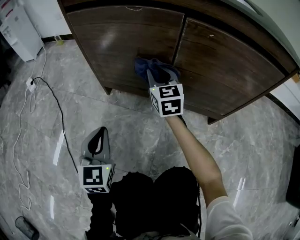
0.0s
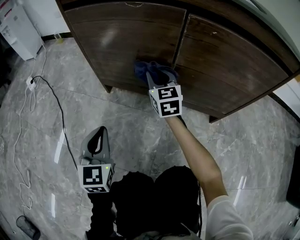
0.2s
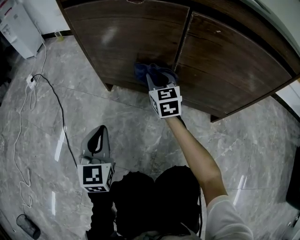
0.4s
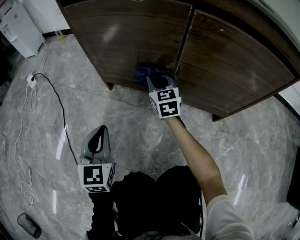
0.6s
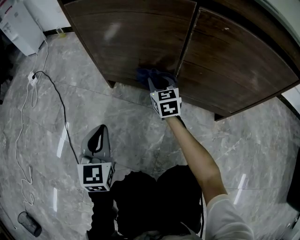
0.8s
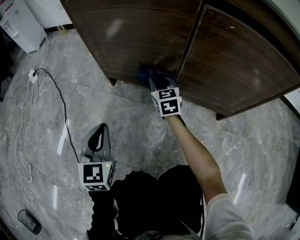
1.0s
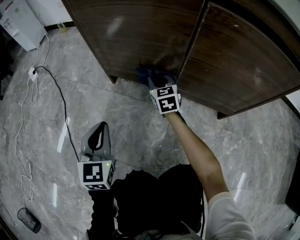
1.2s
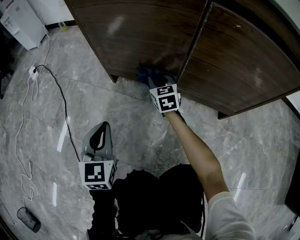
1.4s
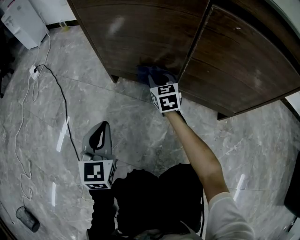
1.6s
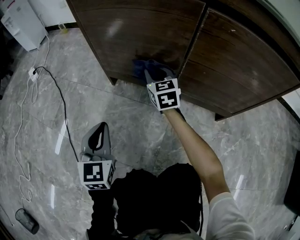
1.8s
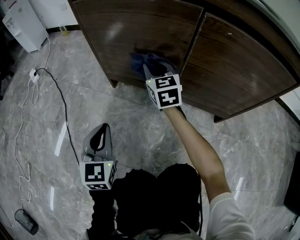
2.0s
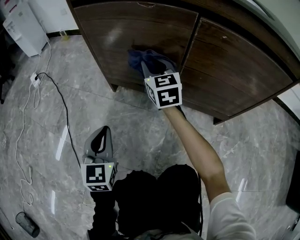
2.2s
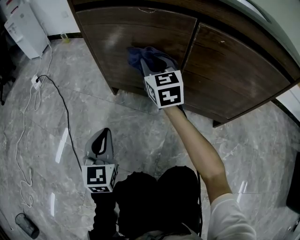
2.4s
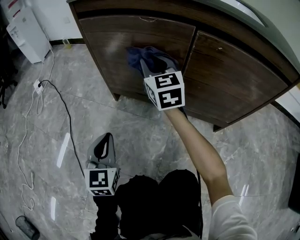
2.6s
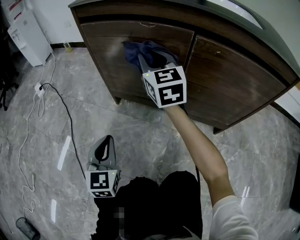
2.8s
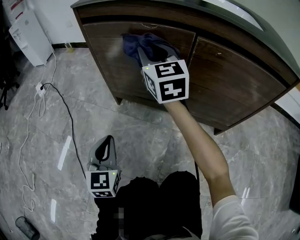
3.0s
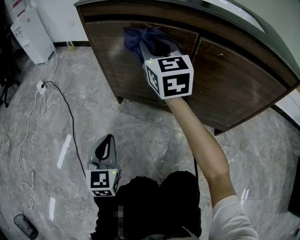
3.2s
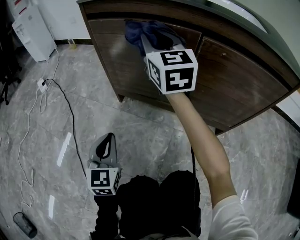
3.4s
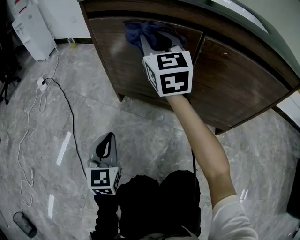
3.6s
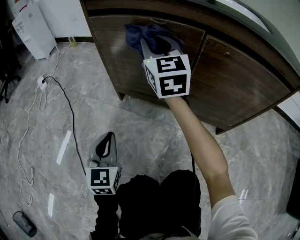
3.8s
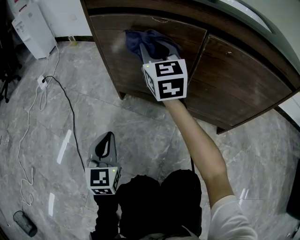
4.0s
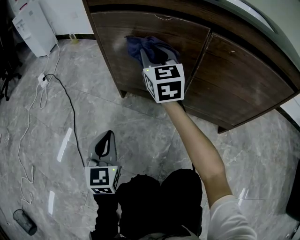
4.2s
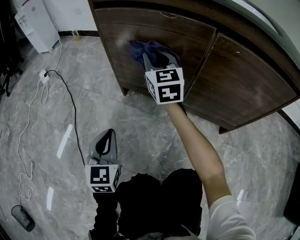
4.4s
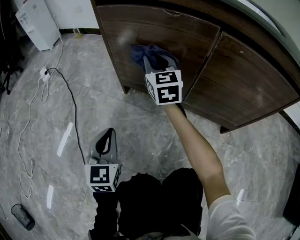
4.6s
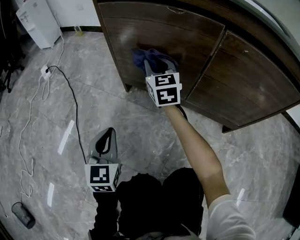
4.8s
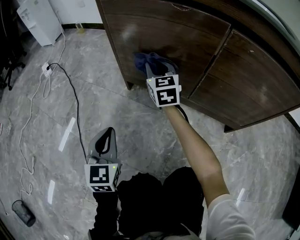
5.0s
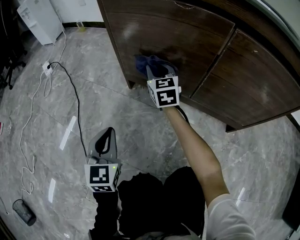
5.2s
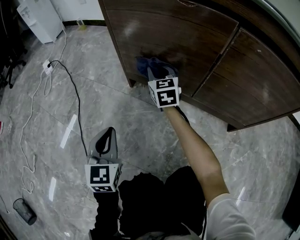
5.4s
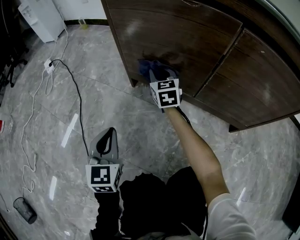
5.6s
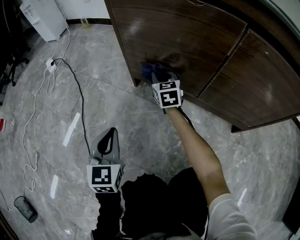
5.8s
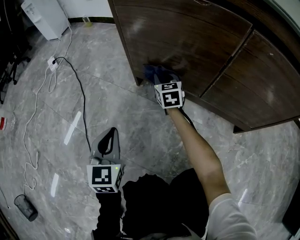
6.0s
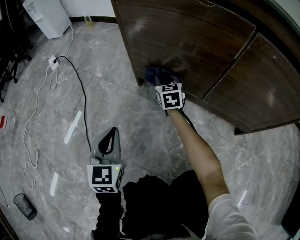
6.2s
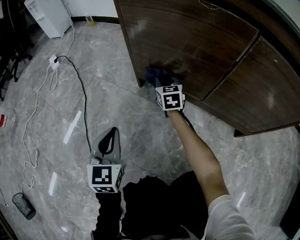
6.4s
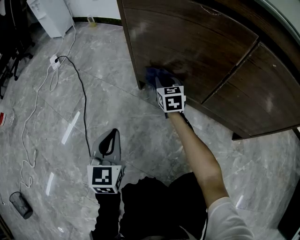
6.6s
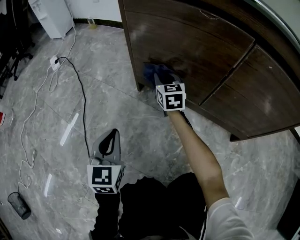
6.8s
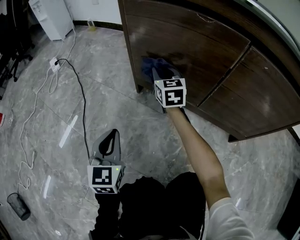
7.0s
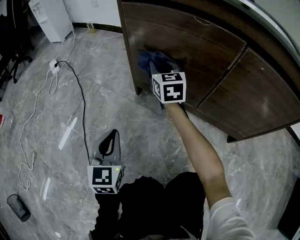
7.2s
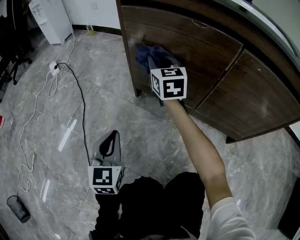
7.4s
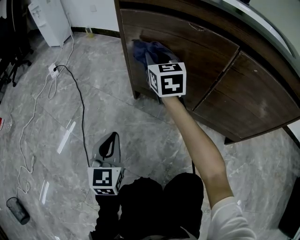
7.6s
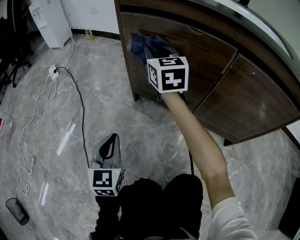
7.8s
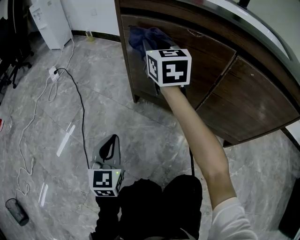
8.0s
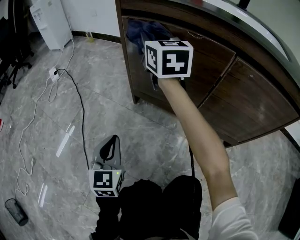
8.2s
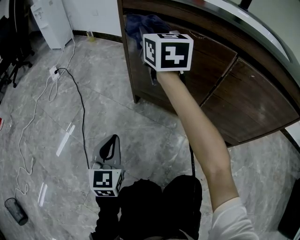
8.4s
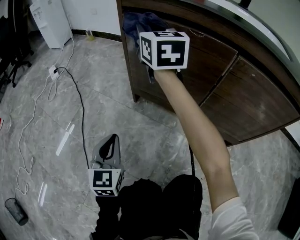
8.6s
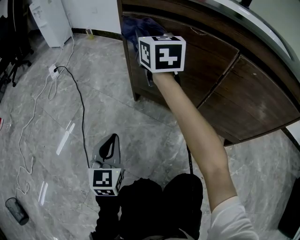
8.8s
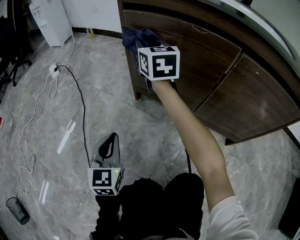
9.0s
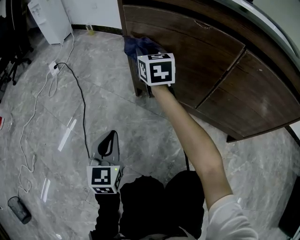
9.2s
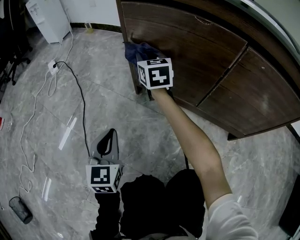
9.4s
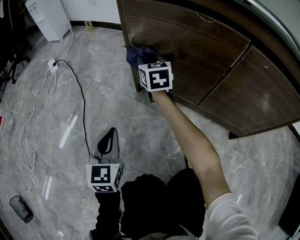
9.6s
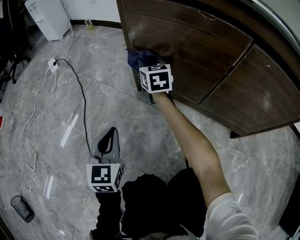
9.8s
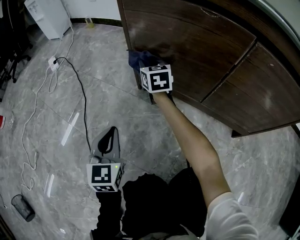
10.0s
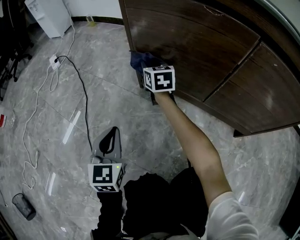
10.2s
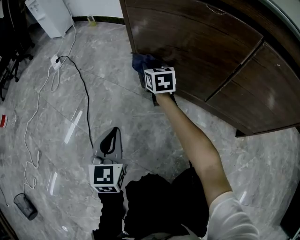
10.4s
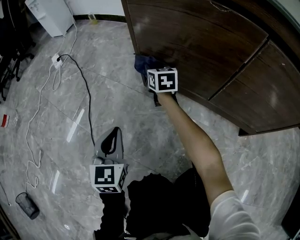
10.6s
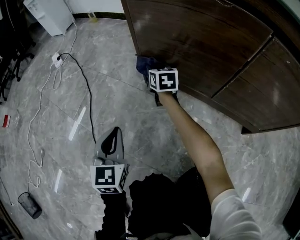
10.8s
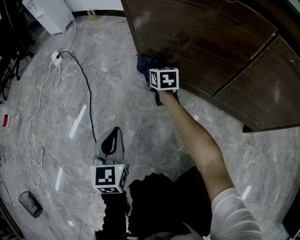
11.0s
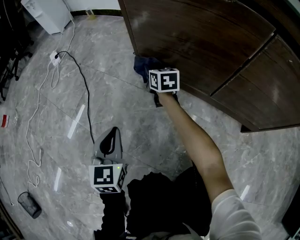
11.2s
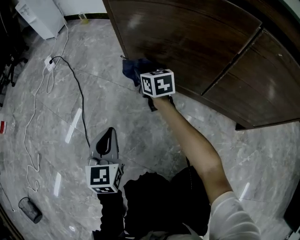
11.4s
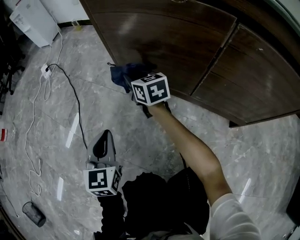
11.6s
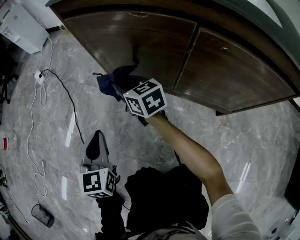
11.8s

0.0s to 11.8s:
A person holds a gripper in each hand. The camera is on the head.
0.0s to 1.4s: The right gripper moves downward, approximately 15 cm.
1.4s to 3.0s: The right gripper heads upward, covering approximately 30 cm, and rotates approximately 20 degrees.
3.0s to 4.4s: The right gripper shifts about 10 cm downward.
4.4s to 6.0s: The right gripper is displaced downward by about 20 cm, and changes its angle by some 20 degrees; the left gripper changes place by some 5 cm.
6.0s to 7.4s: The right gripper is displaced upward by roughly 20 cm.
7.4s to 8.8s: The right gripper shifts about 15 cm upward.
8.8s to 10.4s: The right gripper shifts roughly 25 cm downward, and swivels roughly 20 degrees.
10.4s to 11.8s: The right gripper travels backward and upward by about 15 cm. The left gripper moves upward and to the right, some 10 cm.

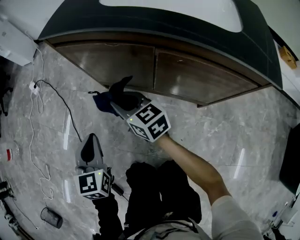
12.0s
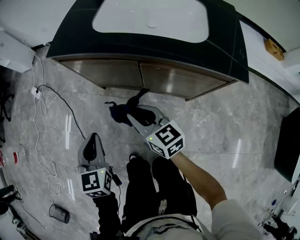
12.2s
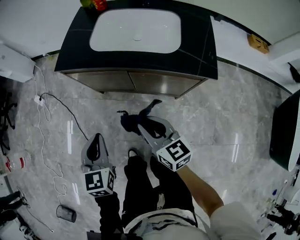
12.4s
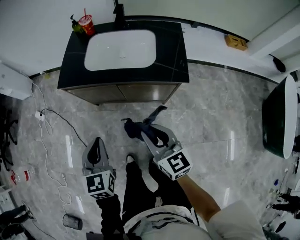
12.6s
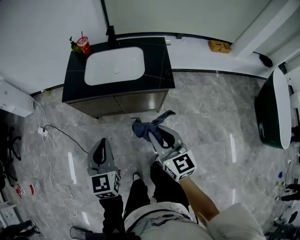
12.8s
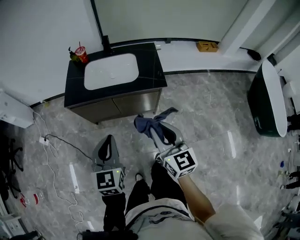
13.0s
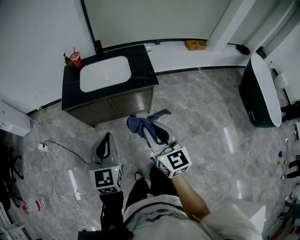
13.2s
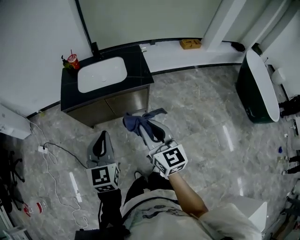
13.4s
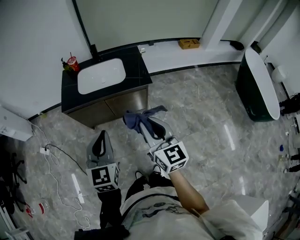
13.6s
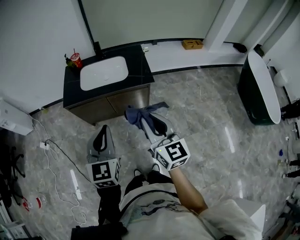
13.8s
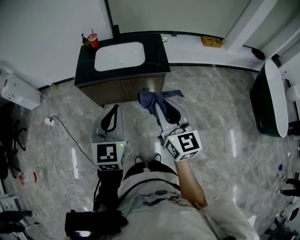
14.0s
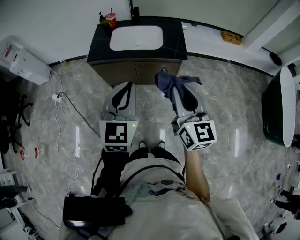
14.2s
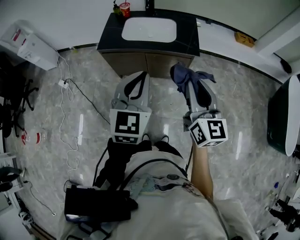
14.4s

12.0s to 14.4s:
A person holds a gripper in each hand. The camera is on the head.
12.0s to 13.2s: Both grippers travel together upward, about 50 cm. The left gripper changes its angle by about 40 degrees. The right gripper turns by approximately 50 degrees.
13.2s to 14.4s: Both grippers travel together upward, some 5 cm.

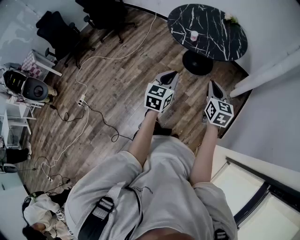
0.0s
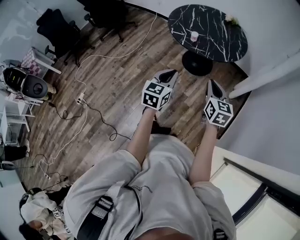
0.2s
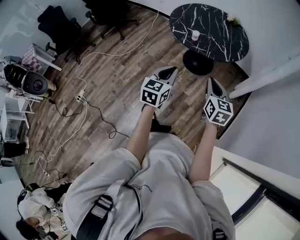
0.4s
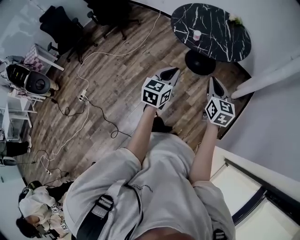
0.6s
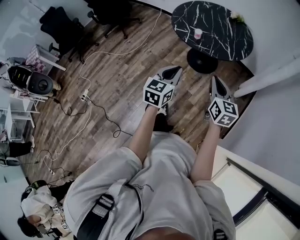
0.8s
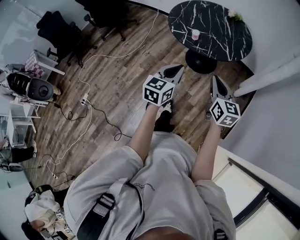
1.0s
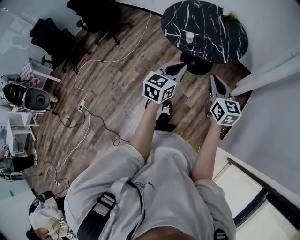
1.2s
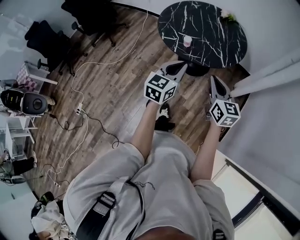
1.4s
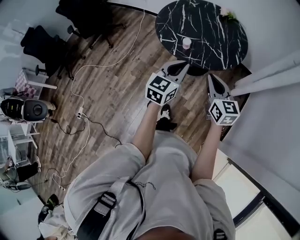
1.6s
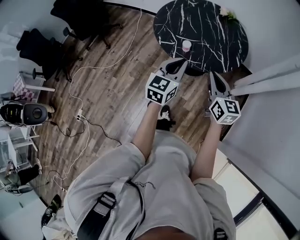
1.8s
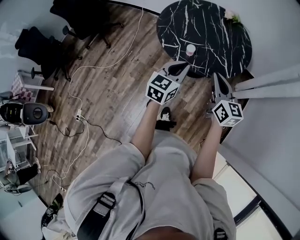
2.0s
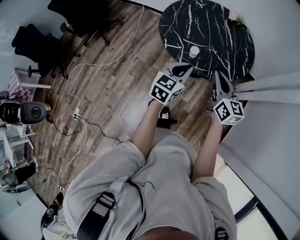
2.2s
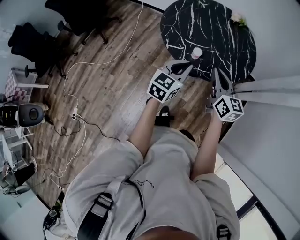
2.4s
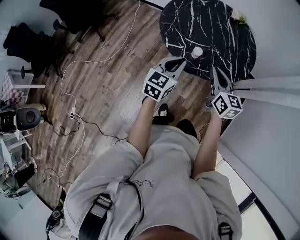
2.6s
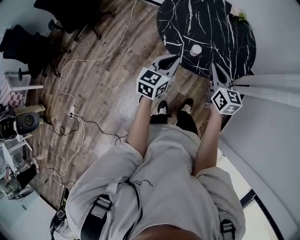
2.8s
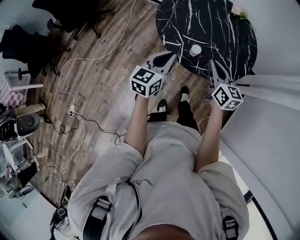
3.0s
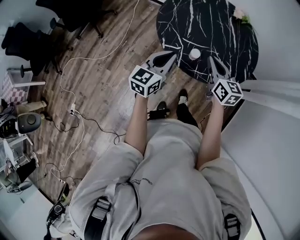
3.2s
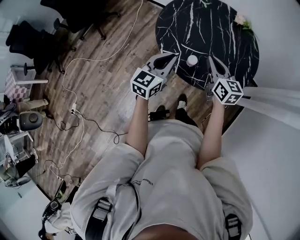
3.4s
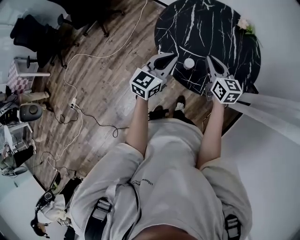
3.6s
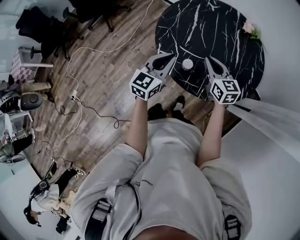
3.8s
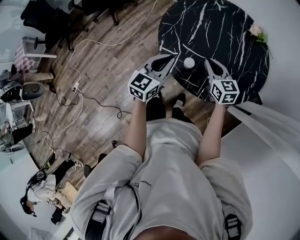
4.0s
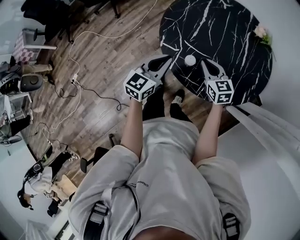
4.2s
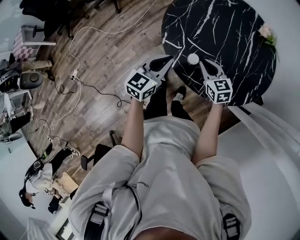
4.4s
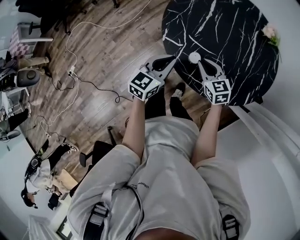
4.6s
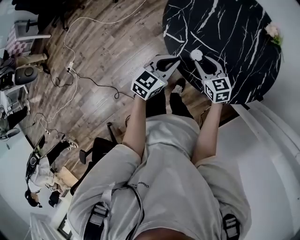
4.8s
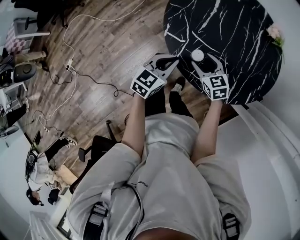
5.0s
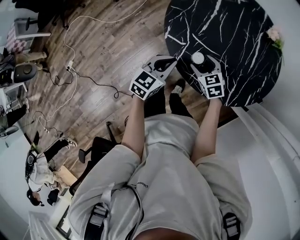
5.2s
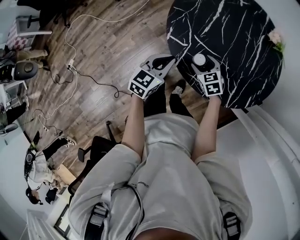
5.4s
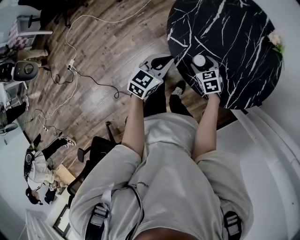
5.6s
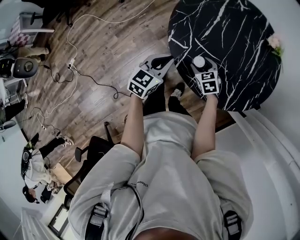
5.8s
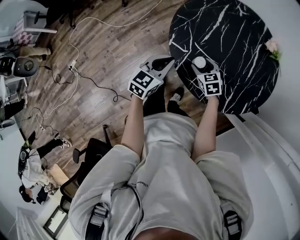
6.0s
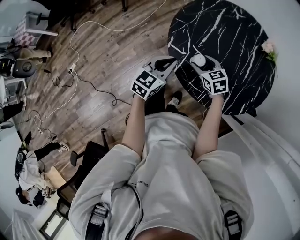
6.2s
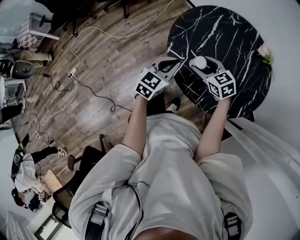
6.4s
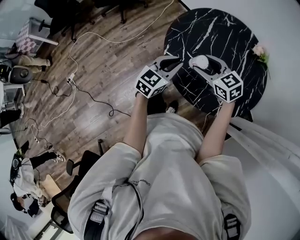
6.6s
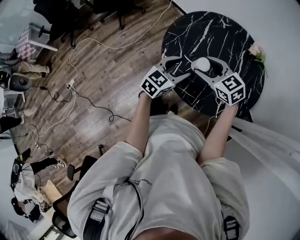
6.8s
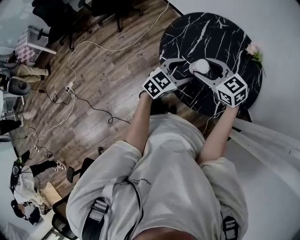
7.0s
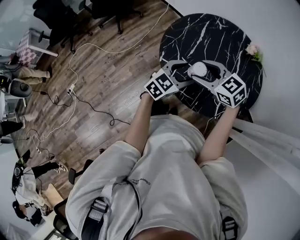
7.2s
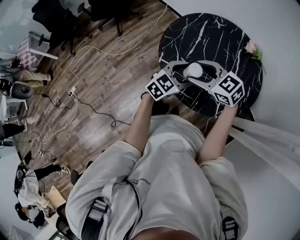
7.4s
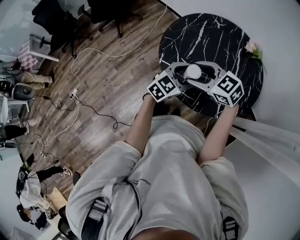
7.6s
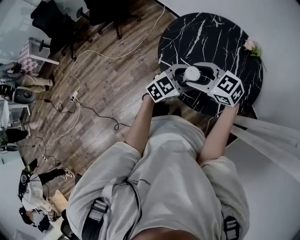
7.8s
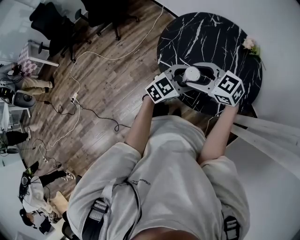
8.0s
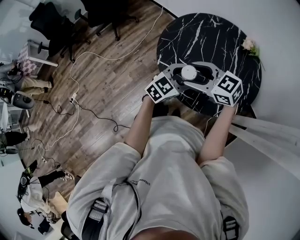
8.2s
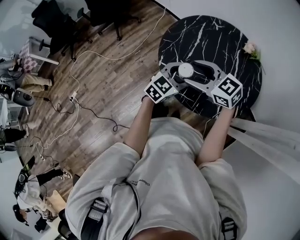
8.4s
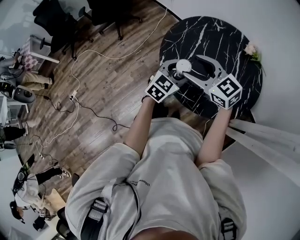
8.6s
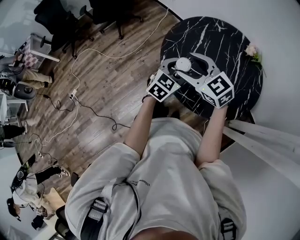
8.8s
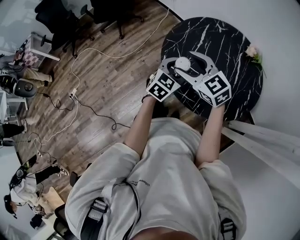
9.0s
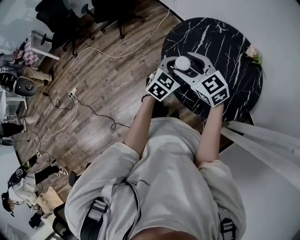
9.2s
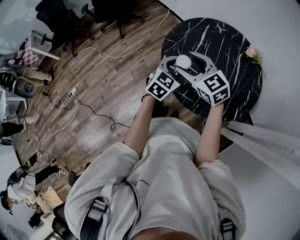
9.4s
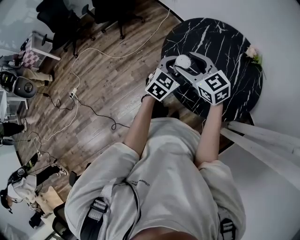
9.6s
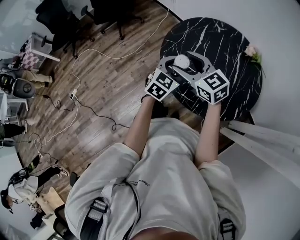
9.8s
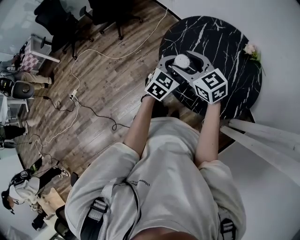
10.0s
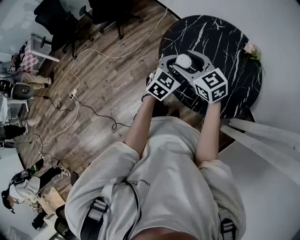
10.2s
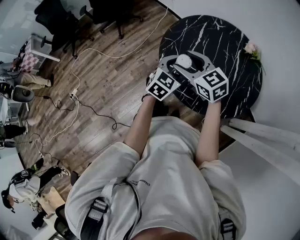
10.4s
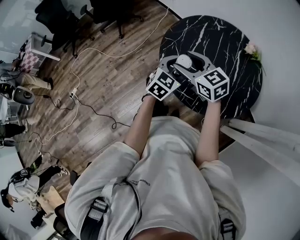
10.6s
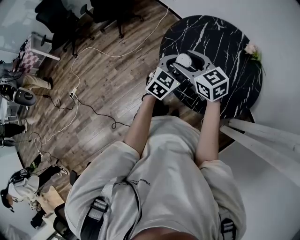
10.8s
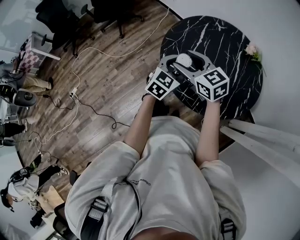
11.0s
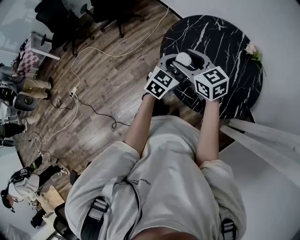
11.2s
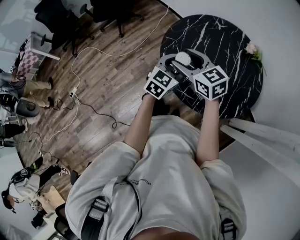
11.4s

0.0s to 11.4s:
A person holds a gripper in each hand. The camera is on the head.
0.0s to 1.4s: The two grippers go about 20 cm forward.
1.4s to 2.8s: Both grippers travel together forward and to the left, some 30 cm.
2.8s to 4.2s: The right gripper heads forward and downward, covering some 20 cm, and turns by approximately 40 degrees, while the left gripper shifts about 15 cm forward and to the right.
4.2s to 5.6s: The right gripper goes roughly 15 cm downward and to the left, changes its angle by some 30 degrees, and opens up; the left gripper heads downward, covering approximately 10 cm.
5.6s to 7.2s: The right gripper heads upward, covering roughly 25 cm, and turns by about 30 degrees. The left gripper shifts approximately 15 cm to the right and upward, changes its angle by about 20 degrees, and opens up.
7.2s to 8.6s: The right gripper changes place by roughly 5 cm.
8.6s to 11.4s: The grippers stay close to where they were, moving slightly.
